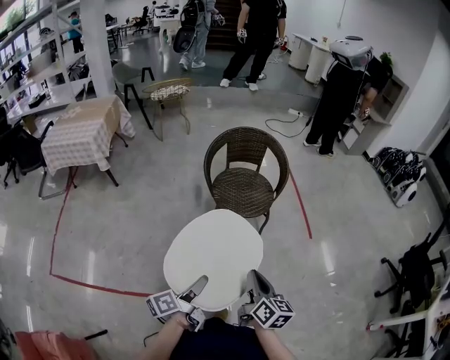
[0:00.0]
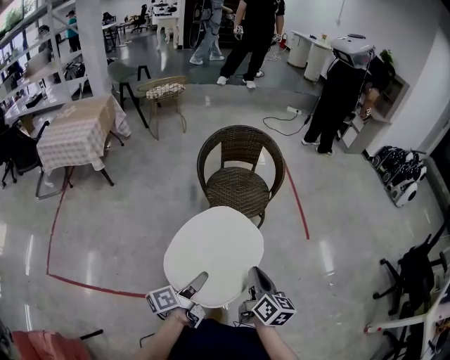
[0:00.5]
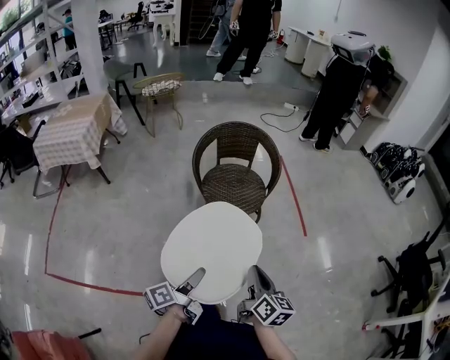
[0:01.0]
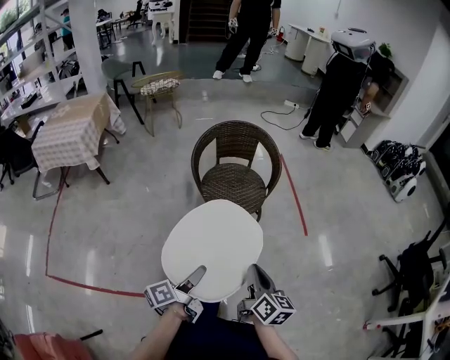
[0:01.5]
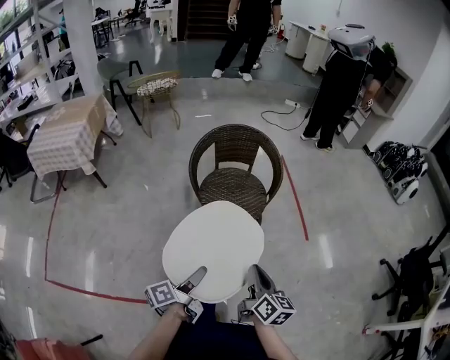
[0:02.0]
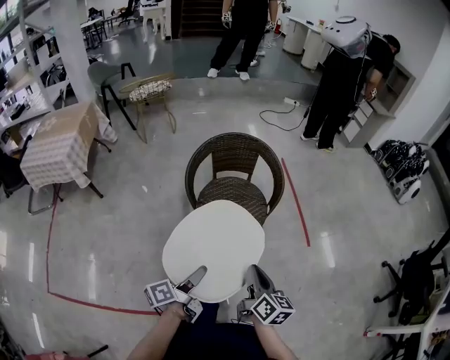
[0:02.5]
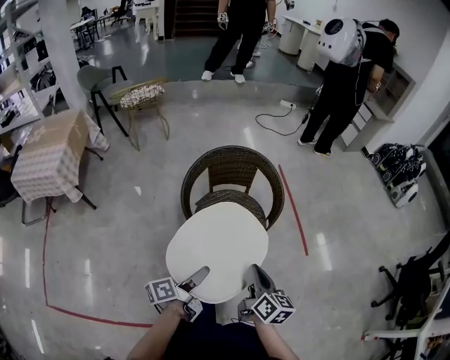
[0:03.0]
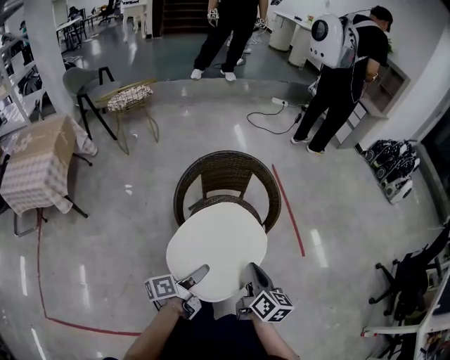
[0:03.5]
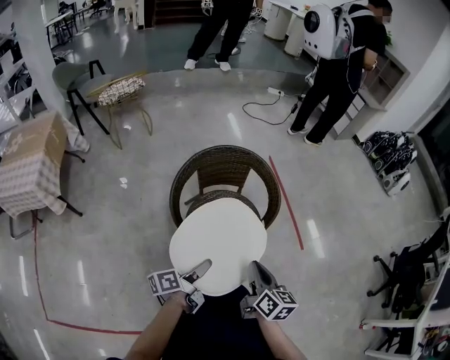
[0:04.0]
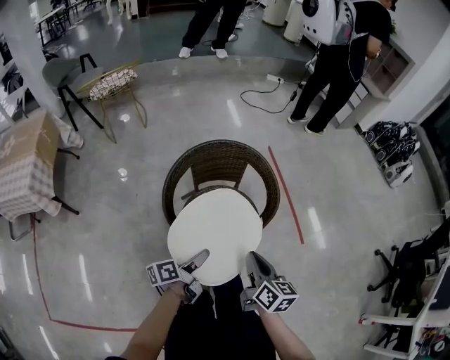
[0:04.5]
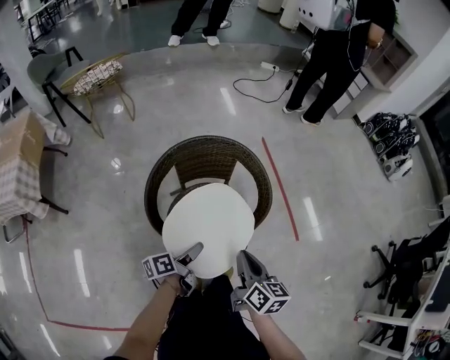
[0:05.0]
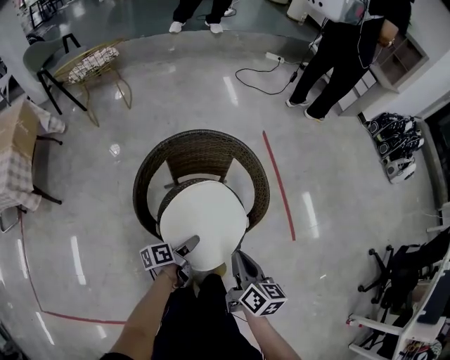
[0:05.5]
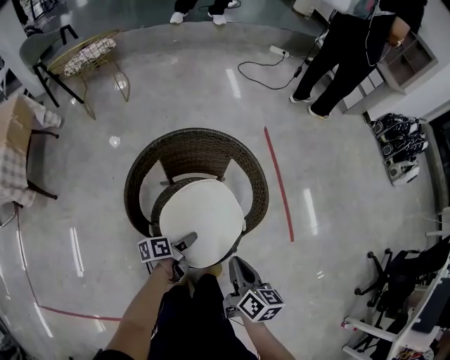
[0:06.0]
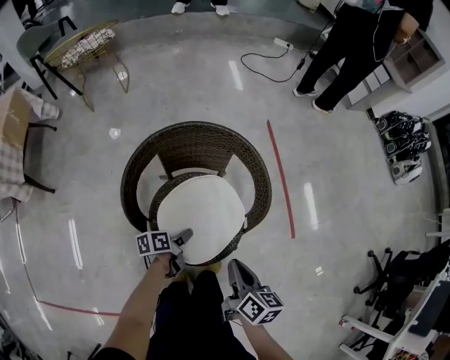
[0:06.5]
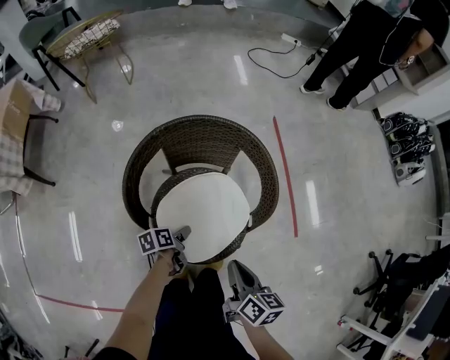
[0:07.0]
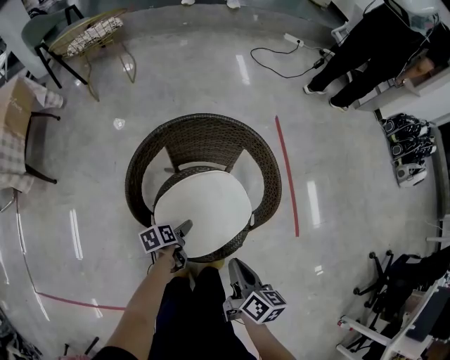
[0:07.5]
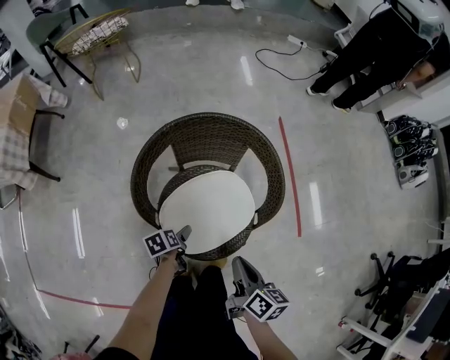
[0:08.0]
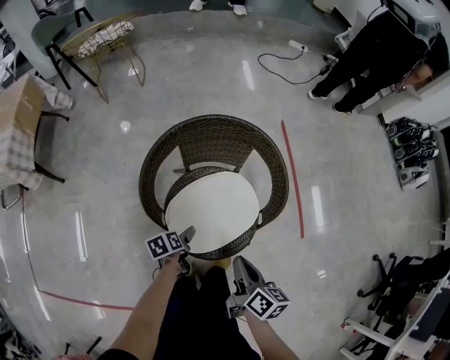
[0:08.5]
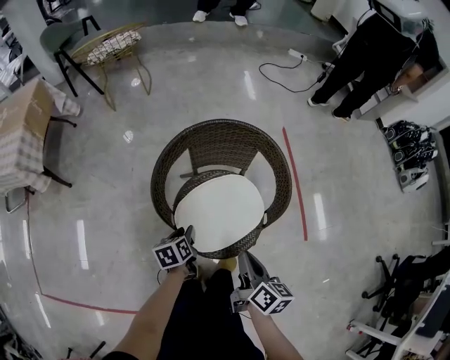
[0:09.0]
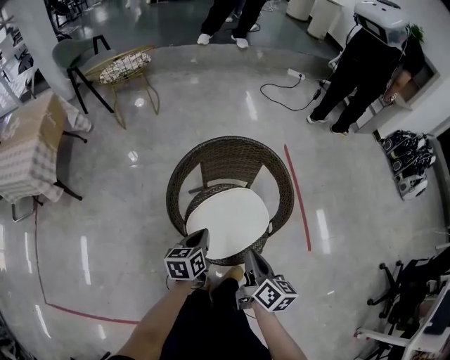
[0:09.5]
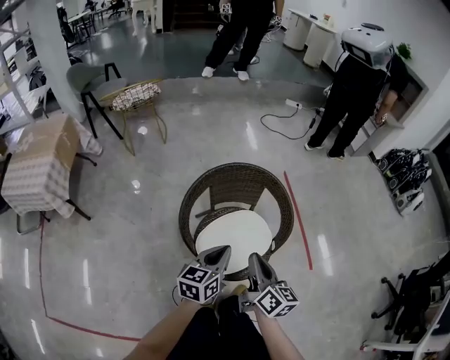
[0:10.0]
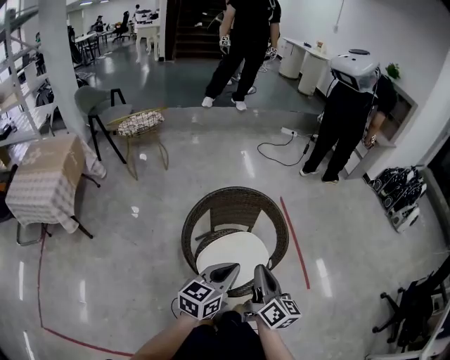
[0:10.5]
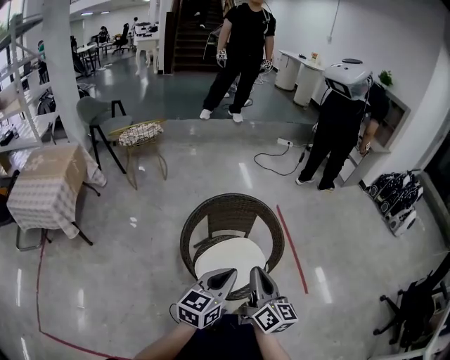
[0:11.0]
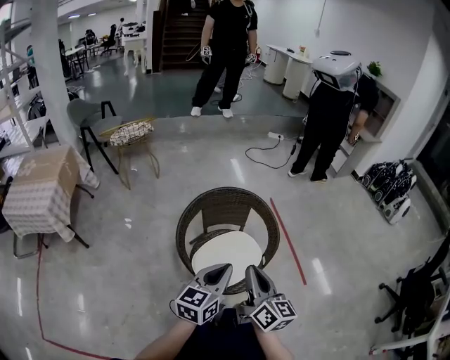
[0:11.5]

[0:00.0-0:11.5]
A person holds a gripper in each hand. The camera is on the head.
0:00.0 to 0:02.0: The right gripper shifts by approximately 10 cm.
0:02.0 to 0:04.0: The right gripper changes place by approximately 25 cm.
0:04.0 to 0:06.0: The right gripper moves some 15 cm.
0:07.5 to 0:09.5: The right gripper heads upward, covering approximately 5 cm.
0:09.5 to 0:11.5: The right gripper is displaced upward by roughly 15 cm, and rotates roughly 30 degrees.

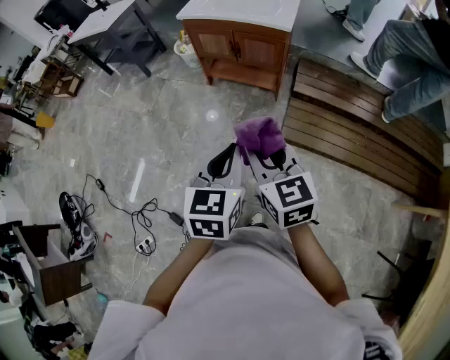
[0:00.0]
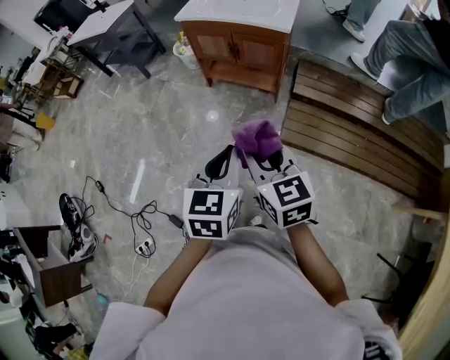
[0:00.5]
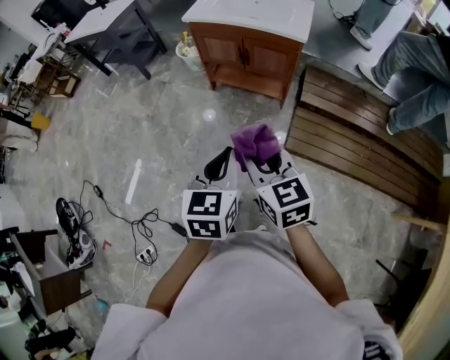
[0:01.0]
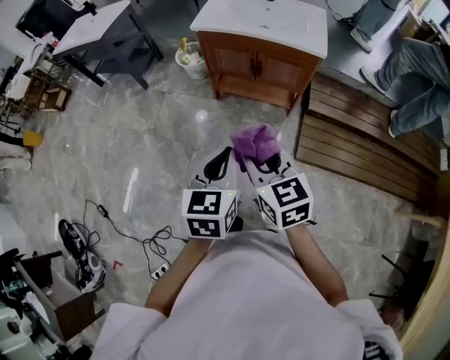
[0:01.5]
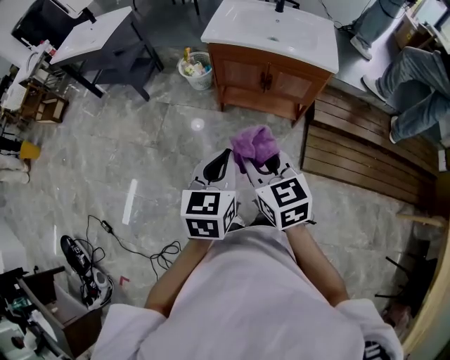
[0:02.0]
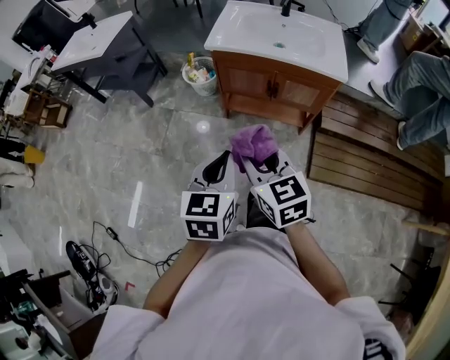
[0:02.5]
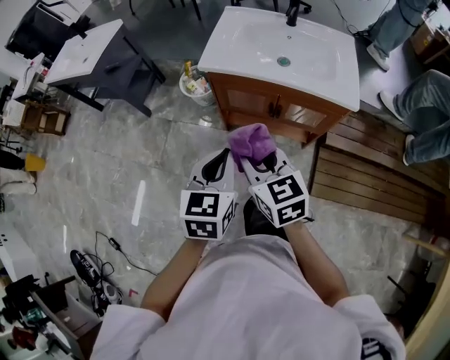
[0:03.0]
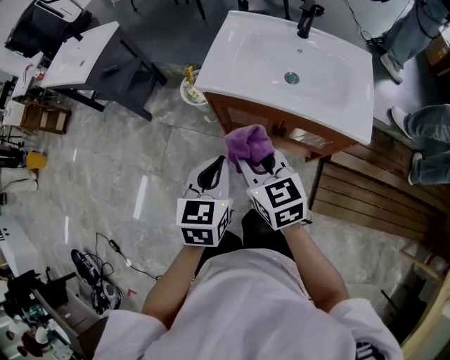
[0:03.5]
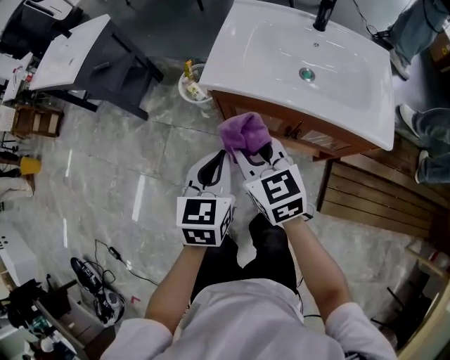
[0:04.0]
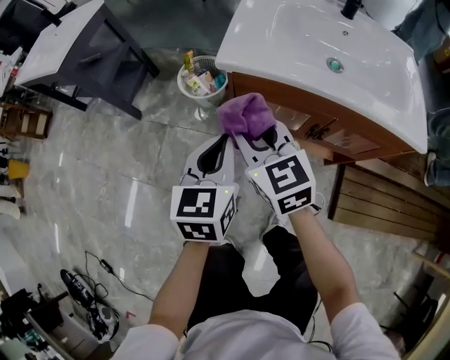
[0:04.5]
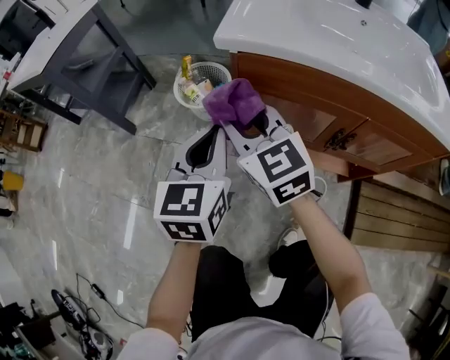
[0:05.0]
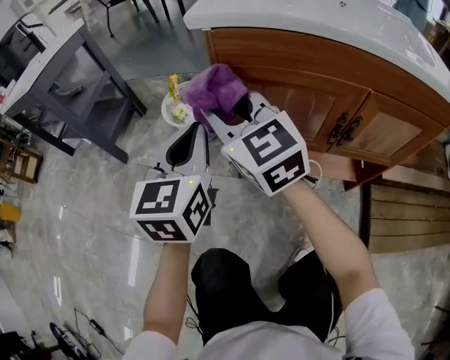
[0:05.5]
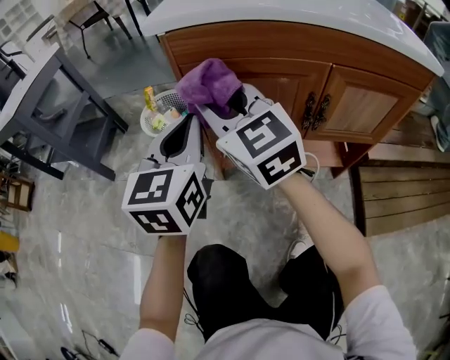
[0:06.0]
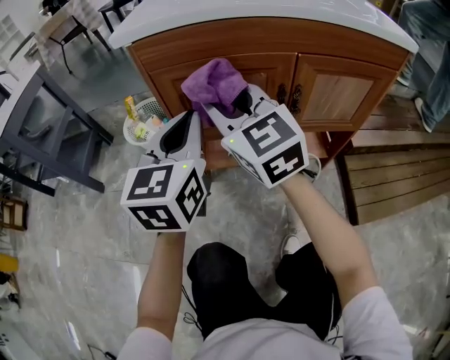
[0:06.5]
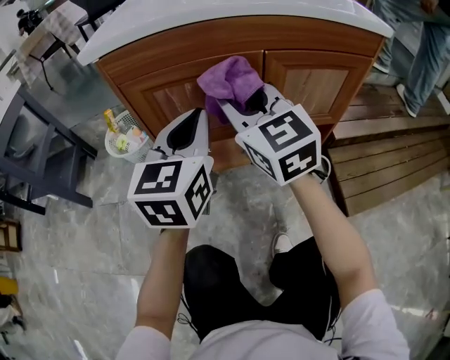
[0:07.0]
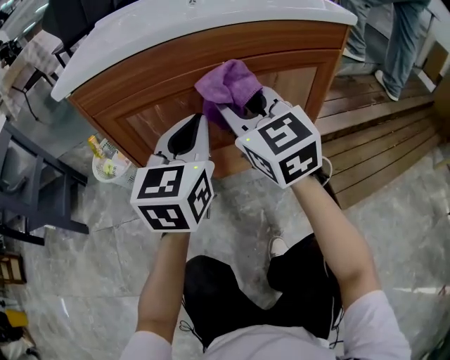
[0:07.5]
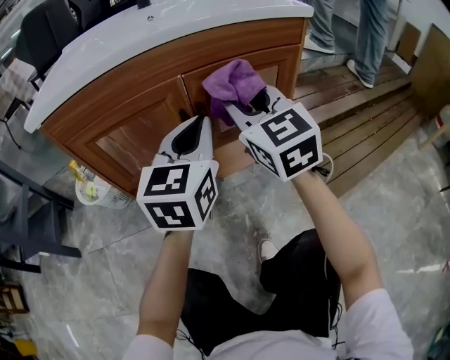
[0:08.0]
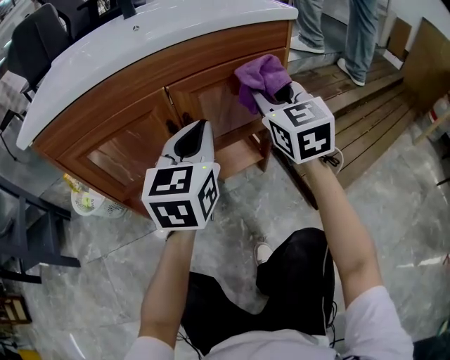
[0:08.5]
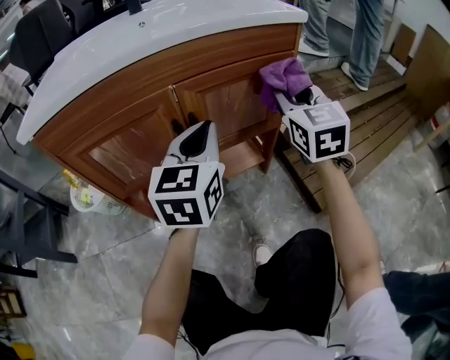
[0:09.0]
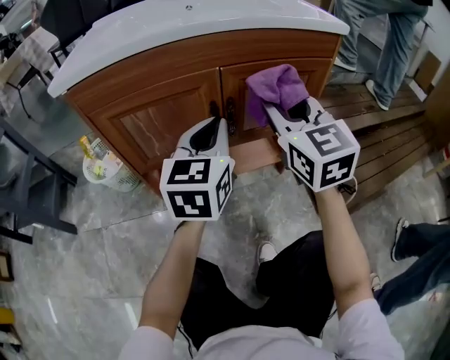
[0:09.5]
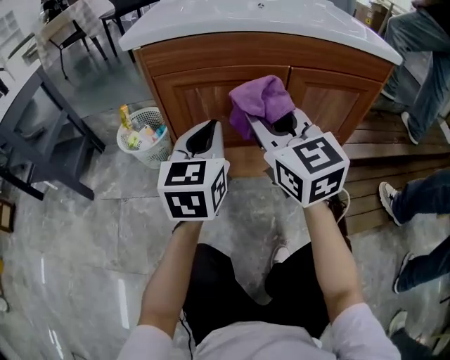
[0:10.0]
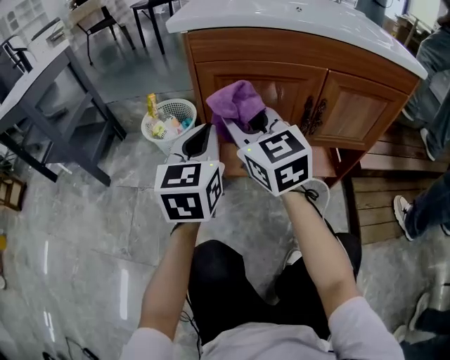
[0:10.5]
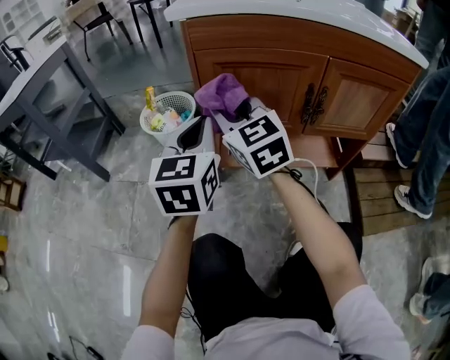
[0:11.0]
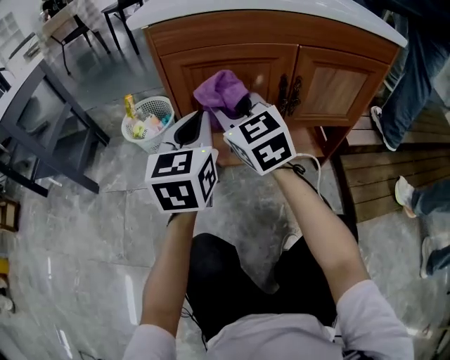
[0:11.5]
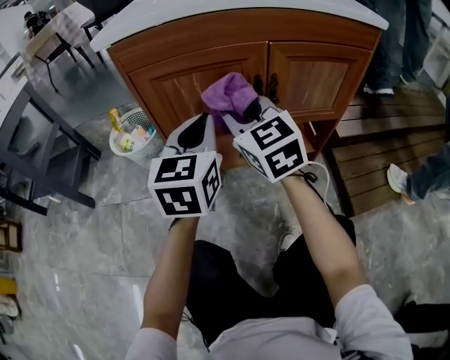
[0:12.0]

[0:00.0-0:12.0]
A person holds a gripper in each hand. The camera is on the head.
0:00.0 to 0:02.0: Both grippers travel together forward and to the left, roughly 35 cm.
0:02.0 to 0:04.0: The two grippers go some 40 cm forward.
0:04.0 to 0:06.0: The two grippers go about 25 cm downward and forward. The right gripper turns by approximately 30 degrees. Meanwhile the left gripper turns by roughly 20 degrees.
0:06.0 to 0:08.0: The right gripper shifts by about 30 cm, and changes its angle by approximately 30 degrees. The left gripper shifts by approximately 25 cm, and turns by some 30 degrees.
0:08.0 to 0:10.0: The left gripper ends up approximately 15 cm from where it was, while the right gripper moves roughly 15 cm.
0:10.0 to 0:12.0: The left gripper reaches about 10 cm to the left, then returns. Meanwhile the right gripper shifts some 5 cm downward, and reaches some 15 cm to the left, then returns.

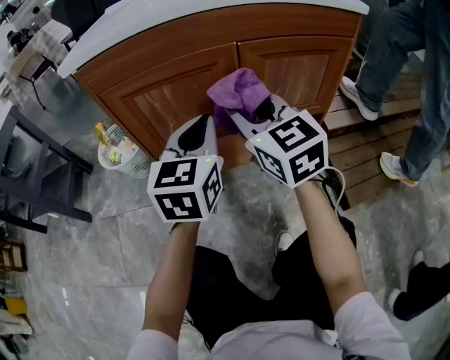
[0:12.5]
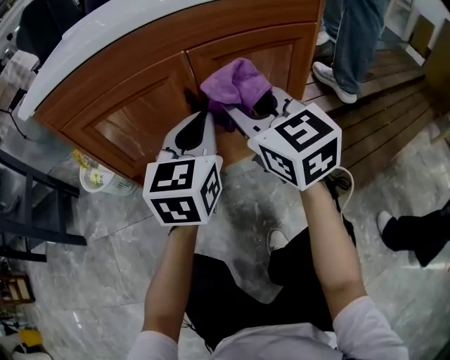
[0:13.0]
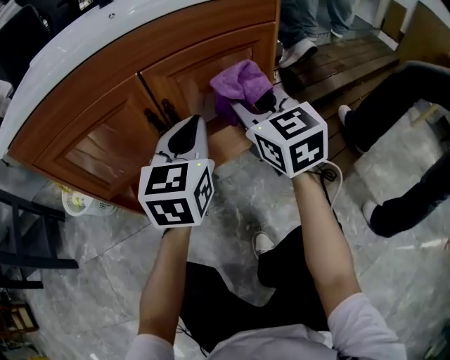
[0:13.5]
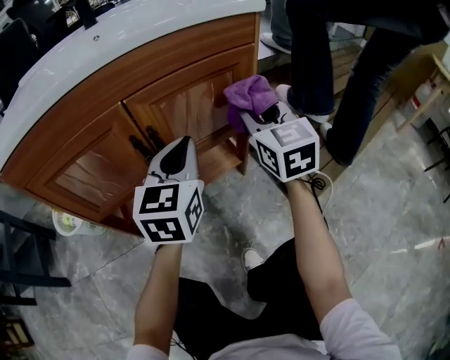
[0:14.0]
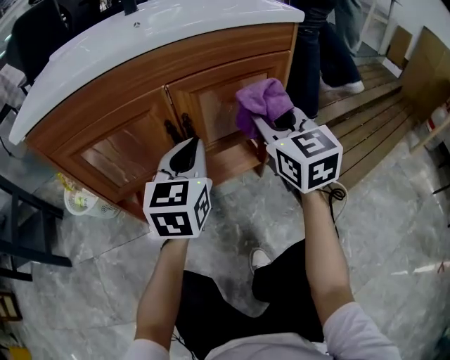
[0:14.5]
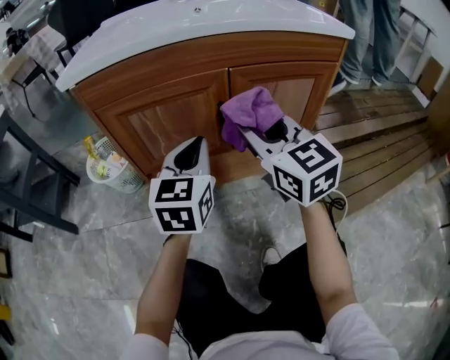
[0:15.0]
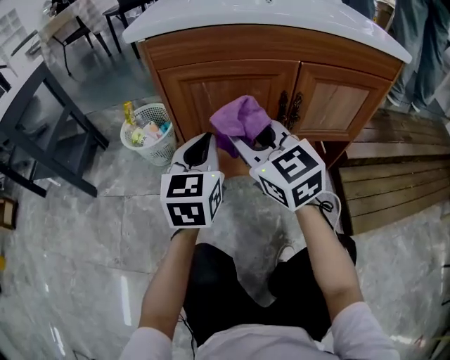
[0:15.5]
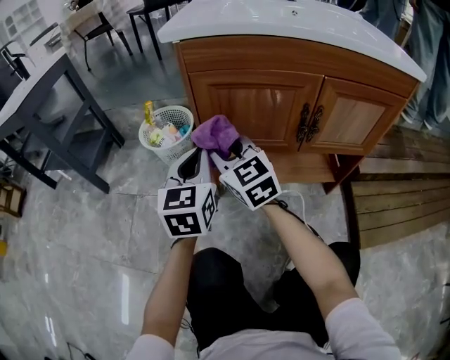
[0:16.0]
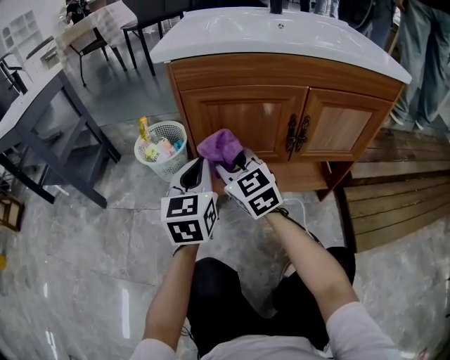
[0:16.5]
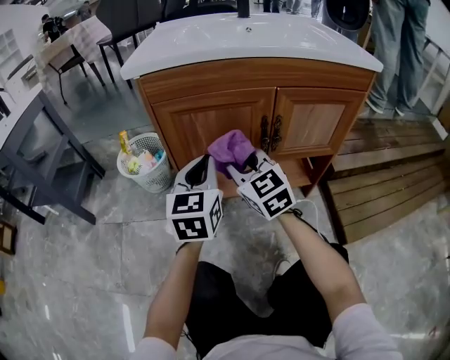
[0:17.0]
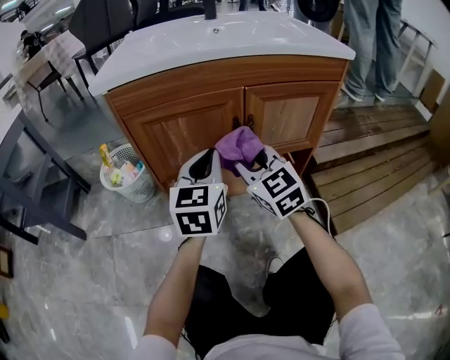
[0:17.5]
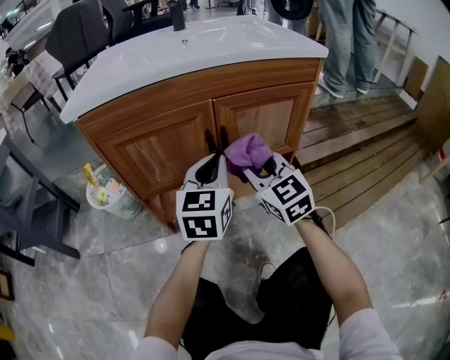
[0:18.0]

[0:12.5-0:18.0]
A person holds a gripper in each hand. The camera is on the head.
0:12.5 to 0:14.5: The left gripper shifts roughly 10 cm to the right; the right gripper goes roughly 20 cm to the right, and changes its angle by roughly 20 degrees.
0:14.5 to 0:16.0: The right gripper changes place by approximately 40 cm, and changes its angle by roughly 40 degrees. The left gripper changes place by approximately 30 cm, and swivels about 30 degrees.
0:16.0 to 0:18.0: Both grippers move to the right, approximately 25 cm. The right gripper turns by some 20 degrees. Meanwhile the left gripper swivels roughly 30 degrees.
